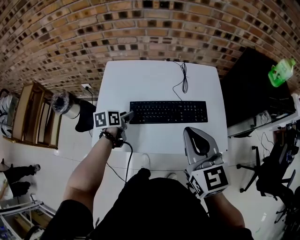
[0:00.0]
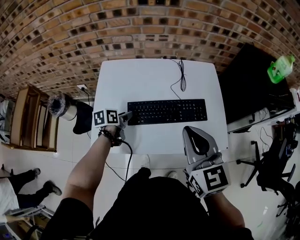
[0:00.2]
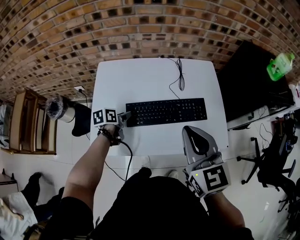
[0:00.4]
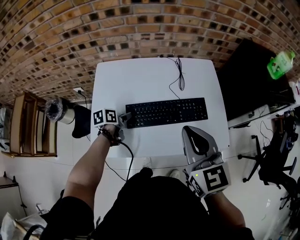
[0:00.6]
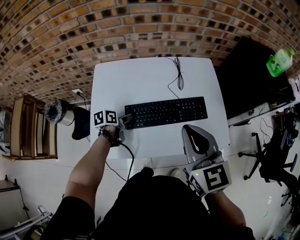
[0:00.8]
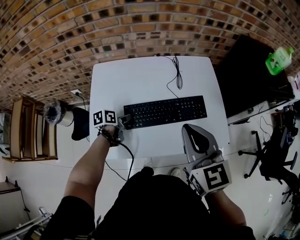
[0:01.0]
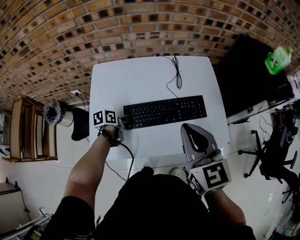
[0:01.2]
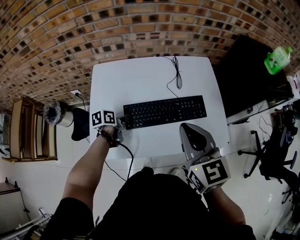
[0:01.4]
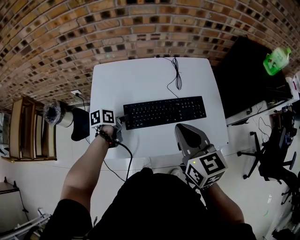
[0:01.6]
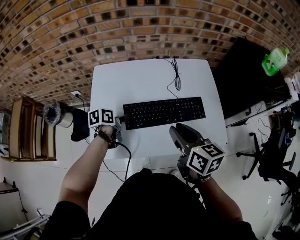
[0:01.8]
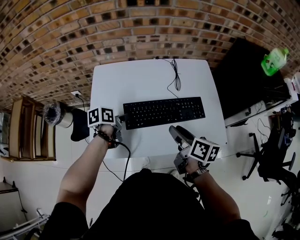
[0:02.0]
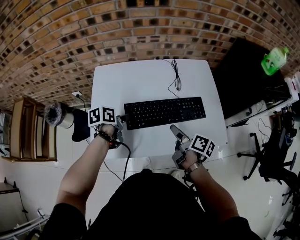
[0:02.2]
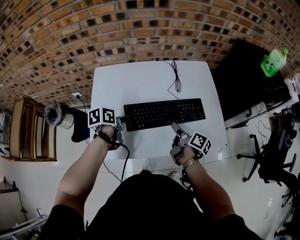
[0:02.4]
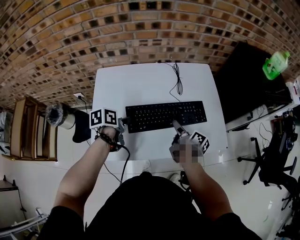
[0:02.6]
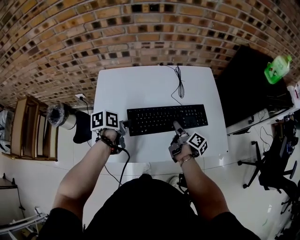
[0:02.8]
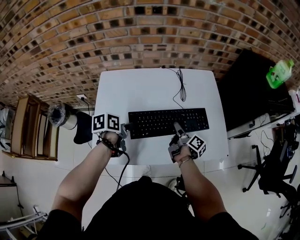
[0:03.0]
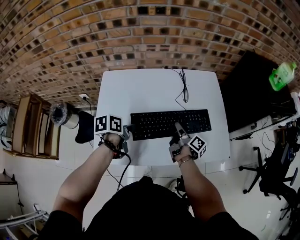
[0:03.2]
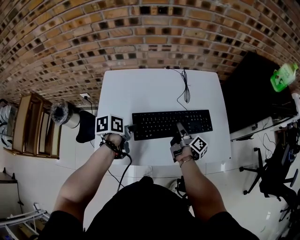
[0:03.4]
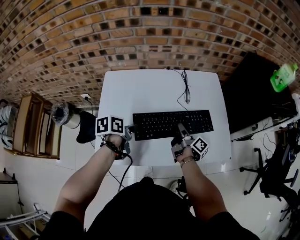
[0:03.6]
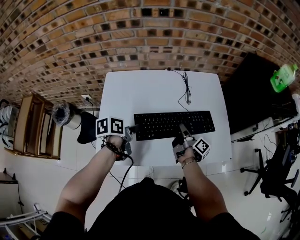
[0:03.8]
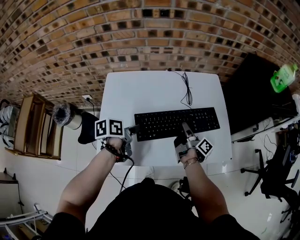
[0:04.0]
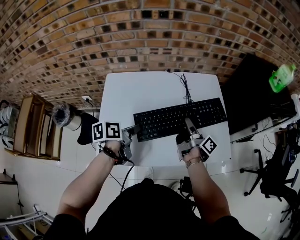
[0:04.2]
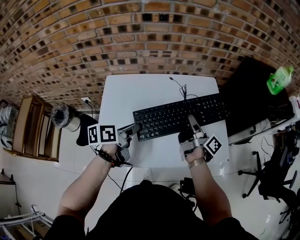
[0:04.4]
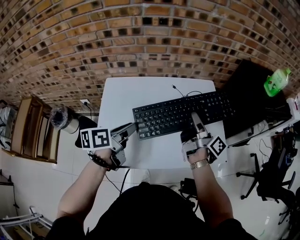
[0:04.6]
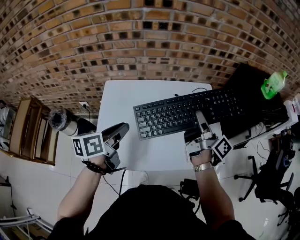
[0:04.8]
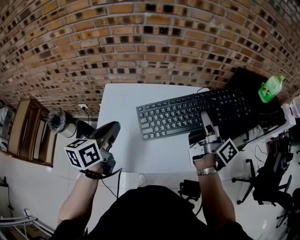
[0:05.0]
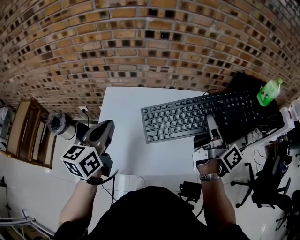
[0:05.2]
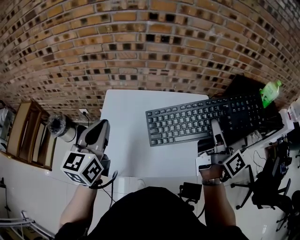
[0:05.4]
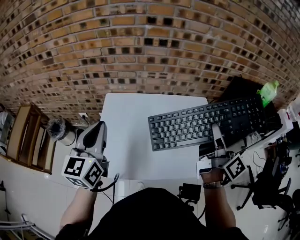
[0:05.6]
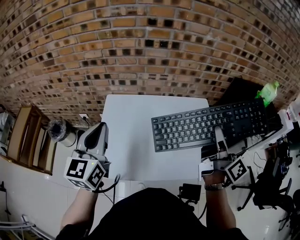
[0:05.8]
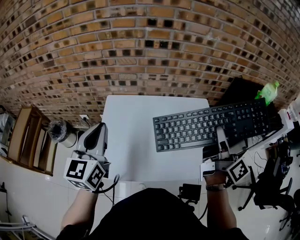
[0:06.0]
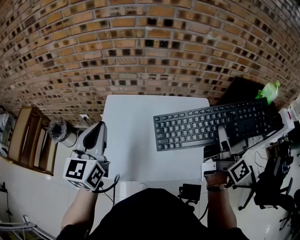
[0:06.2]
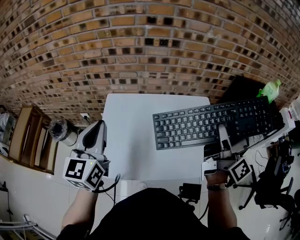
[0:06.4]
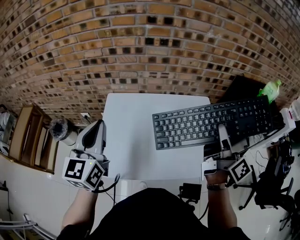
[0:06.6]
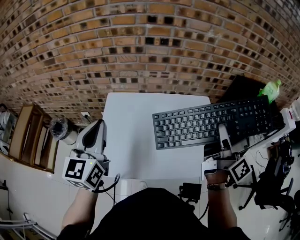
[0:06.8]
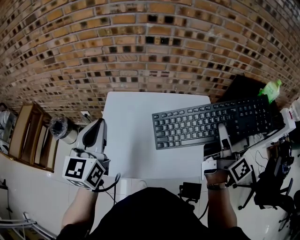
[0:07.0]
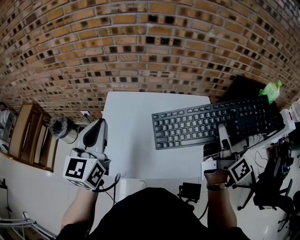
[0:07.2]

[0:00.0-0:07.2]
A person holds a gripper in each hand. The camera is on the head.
0:00.0 to 0:01.4: The left gripper shifts some 5 cm downward, and closes its fingers.
0:01.4 to 0:02.8: The left gripper goes about 10 cm upward, while the right gripper heads downward, covering roughly 25 cm, rotates around the line of its fingers by roughly 80 degrees, clockwise from behind, and opens up.
0:02.8 to 0:04.4: The left gripper goes some 10 cm upward. Meanwhile the right gripper travels upward by some 15 cm, rotates roughly 30 degrees, and closes up.
0:04.4 to 0:05.8: The left gripper heads upward and to the left, covering some 25 cm, turns by approximately 60 degrees, and closes its fingers, while the right gripper moves upward, approximately 20 cm, and rotates some 30 degrees.
0:05.8 to 0:07.2: Neither gripper changes place.

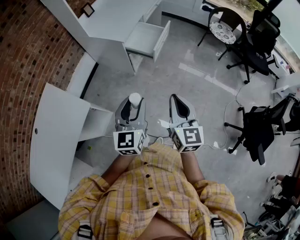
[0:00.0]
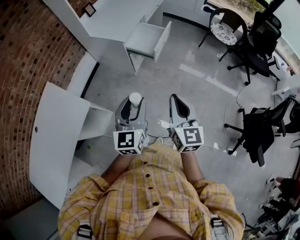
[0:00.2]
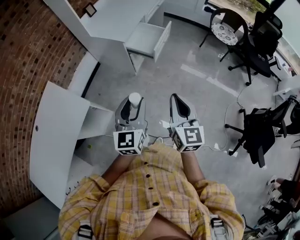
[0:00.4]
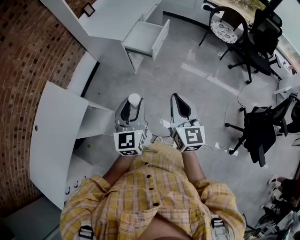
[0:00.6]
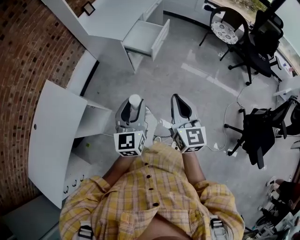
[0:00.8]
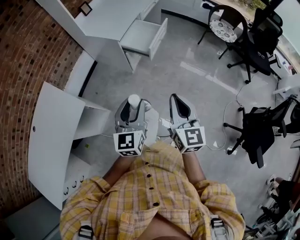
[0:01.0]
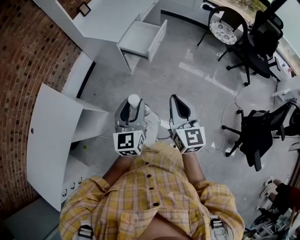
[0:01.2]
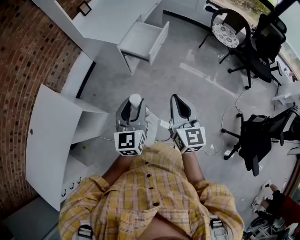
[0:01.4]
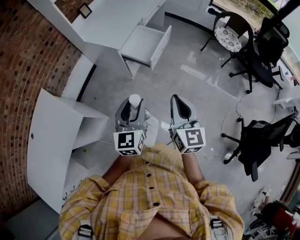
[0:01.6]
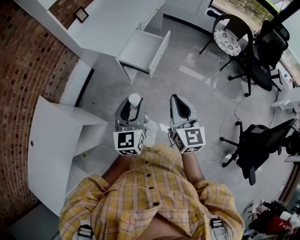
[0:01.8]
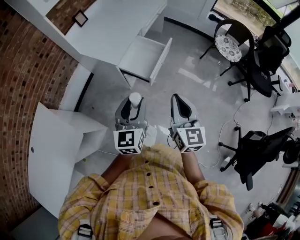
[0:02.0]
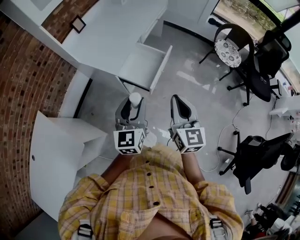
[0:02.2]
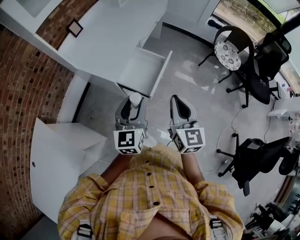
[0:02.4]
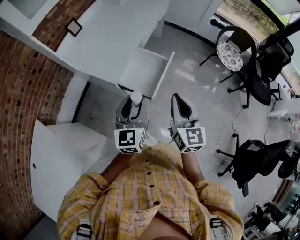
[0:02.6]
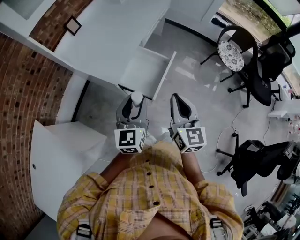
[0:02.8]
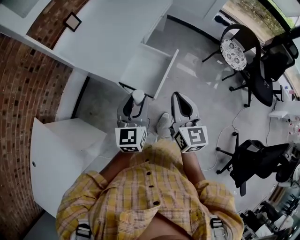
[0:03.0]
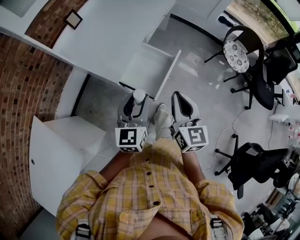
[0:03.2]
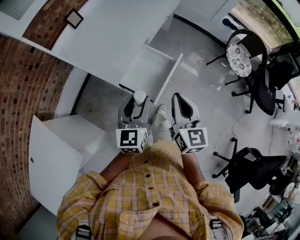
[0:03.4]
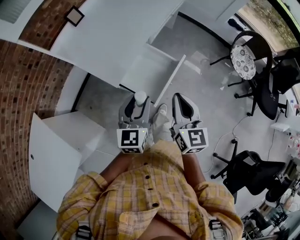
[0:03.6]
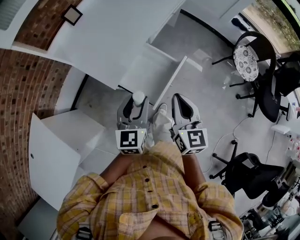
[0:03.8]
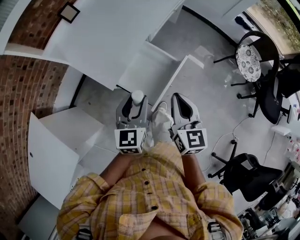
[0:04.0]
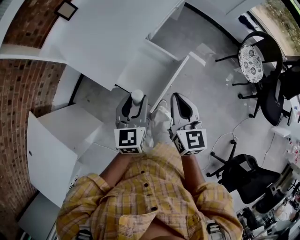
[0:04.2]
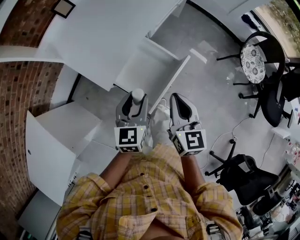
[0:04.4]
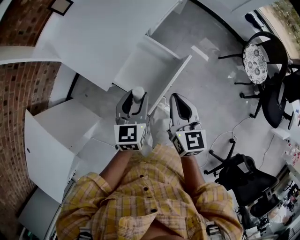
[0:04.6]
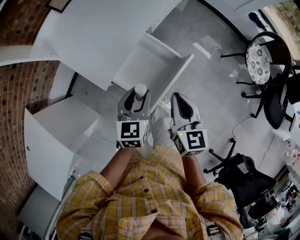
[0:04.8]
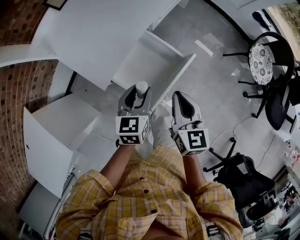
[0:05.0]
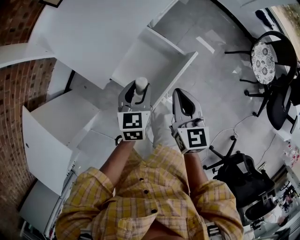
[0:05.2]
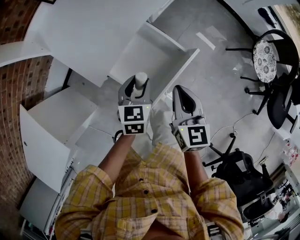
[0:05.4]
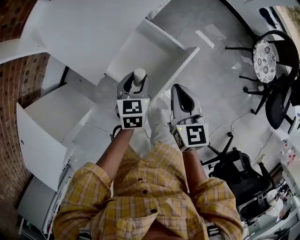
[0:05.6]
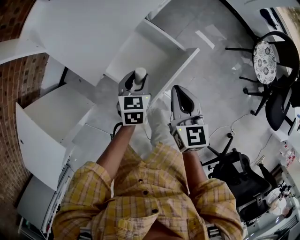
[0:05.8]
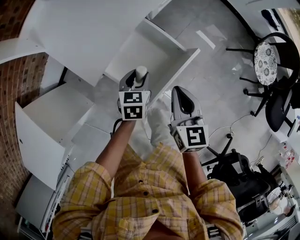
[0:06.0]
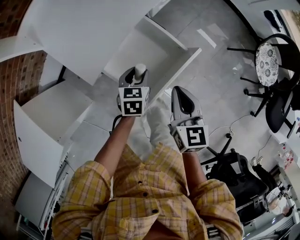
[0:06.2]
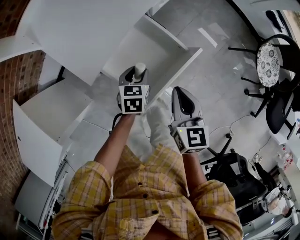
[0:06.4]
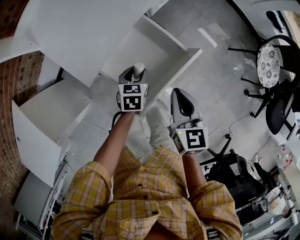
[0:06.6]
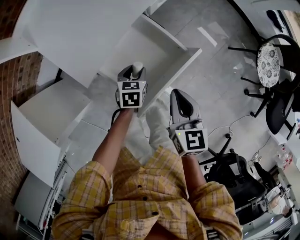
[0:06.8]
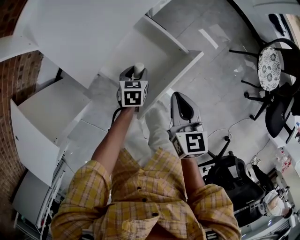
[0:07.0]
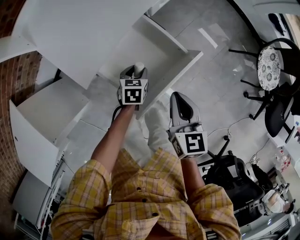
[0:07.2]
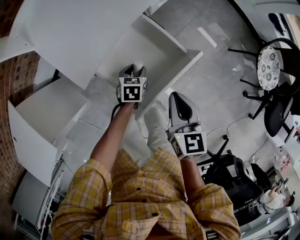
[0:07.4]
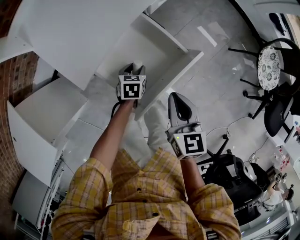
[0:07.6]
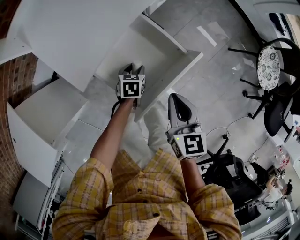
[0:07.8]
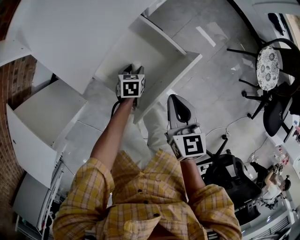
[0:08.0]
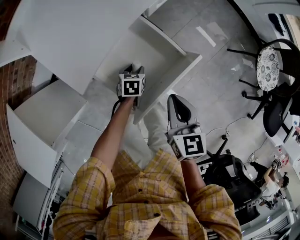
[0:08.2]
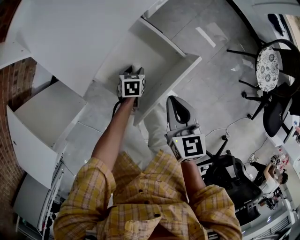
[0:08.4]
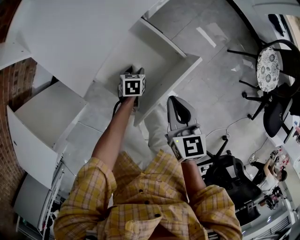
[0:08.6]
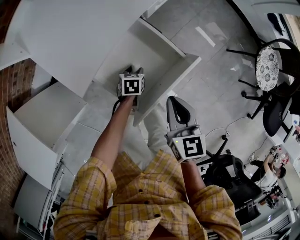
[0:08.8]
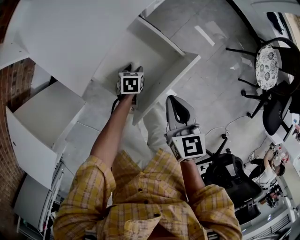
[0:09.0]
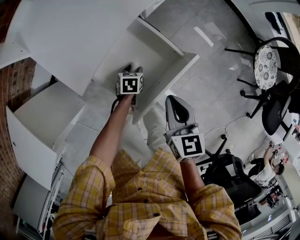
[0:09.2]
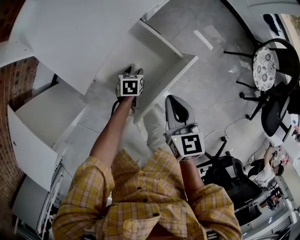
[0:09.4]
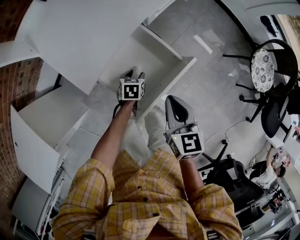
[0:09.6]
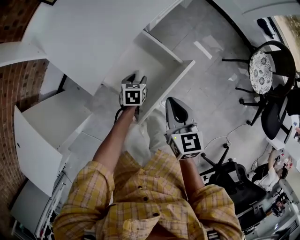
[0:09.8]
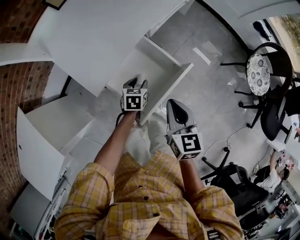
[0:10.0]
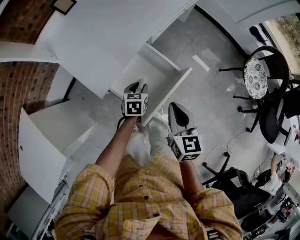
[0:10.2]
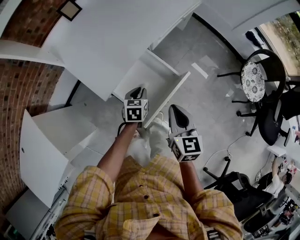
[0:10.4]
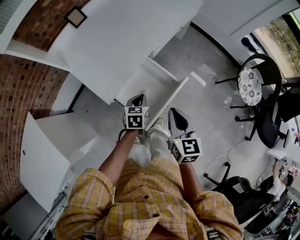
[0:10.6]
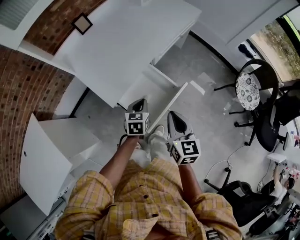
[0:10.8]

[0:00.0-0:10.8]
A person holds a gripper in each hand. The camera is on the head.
0:00.0 to 0:01.6: The two grippers go roughly 10 cm forward and to the right.
0:01.6 to 0:03.0: The two grippers go approximately 30 cm forward.
0:03.0 to 0:04.6: Both grippers travel together forward and downward, some 20 cm. The left gripper changes its angle by about 20 degrees.
0:04.6 to 0:06.2: The right gripper heads downward, covering approximately 10 cm; the left gripper travels downward by roughly 20 cm, and rotates approximately 20 degrees.
0:06.2 to 0:07.8: The left gripper moves downward, some 15 cm.
0:07.8 to 0:09.2: There are only small adjustments of the grippers.
0:09.2 to 0:10.8: The right gripper heads upward, covering about 15 cm, while the left gripper travels upward by roughly 30 cm, turns by approximately 30 degrees, and closes.

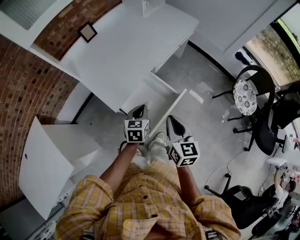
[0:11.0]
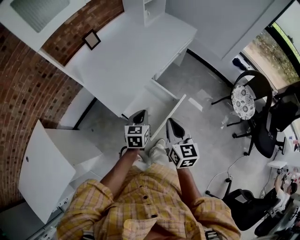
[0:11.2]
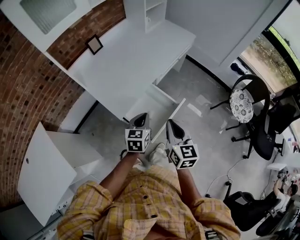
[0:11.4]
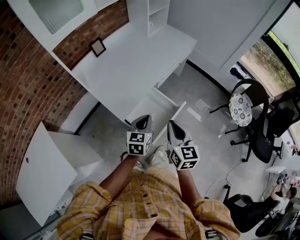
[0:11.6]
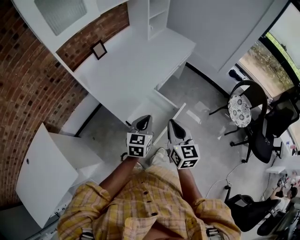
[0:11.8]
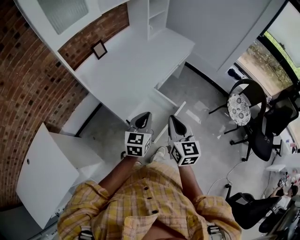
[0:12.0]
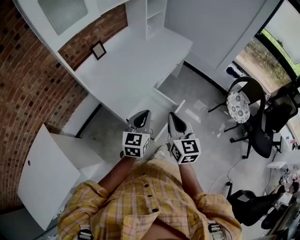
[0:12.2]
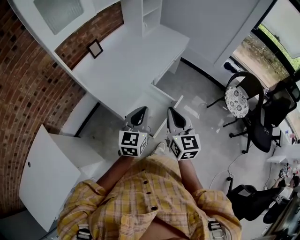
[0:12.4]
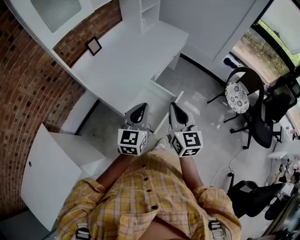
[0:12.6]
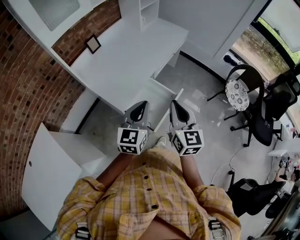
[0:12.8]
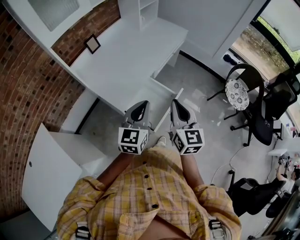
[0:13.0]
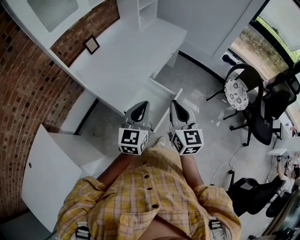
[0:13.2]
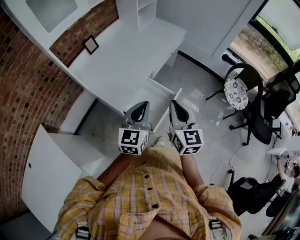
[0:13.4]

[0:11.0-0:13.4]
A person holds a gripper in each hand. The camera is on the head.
0:11.0 to 0:12.2: The left gripper shifts approximately 20 cm upward, and swivels about 20 degrees; the right gripper goes some 10 cm upward.
0:12.2 to 0:13.4: There are only small adjustments of the grippers.

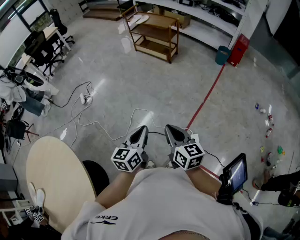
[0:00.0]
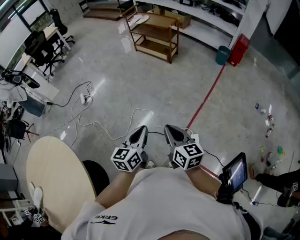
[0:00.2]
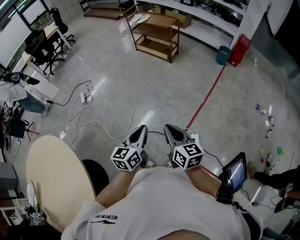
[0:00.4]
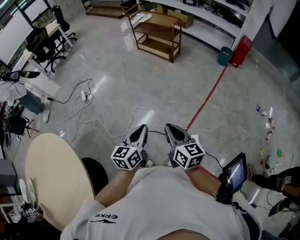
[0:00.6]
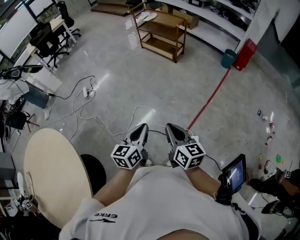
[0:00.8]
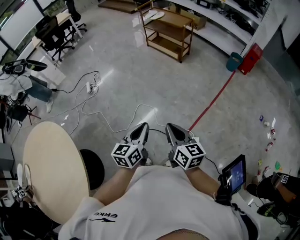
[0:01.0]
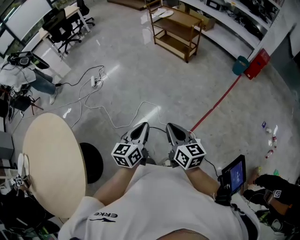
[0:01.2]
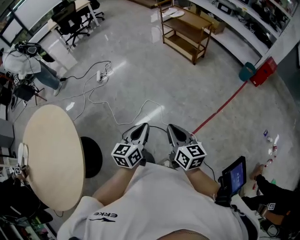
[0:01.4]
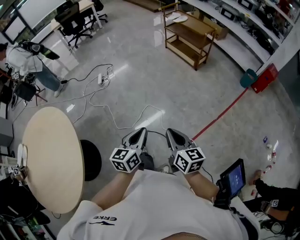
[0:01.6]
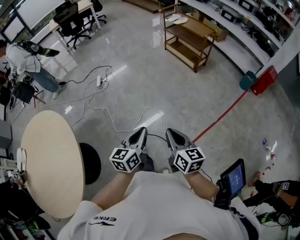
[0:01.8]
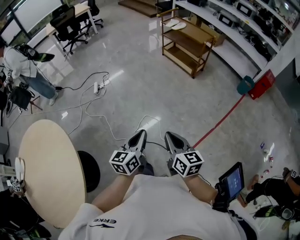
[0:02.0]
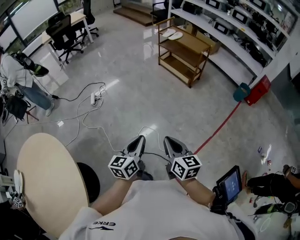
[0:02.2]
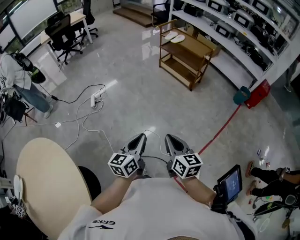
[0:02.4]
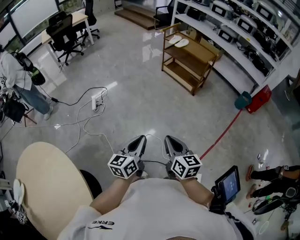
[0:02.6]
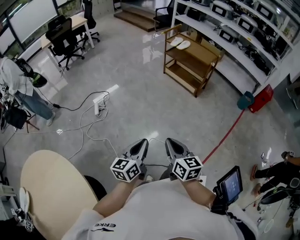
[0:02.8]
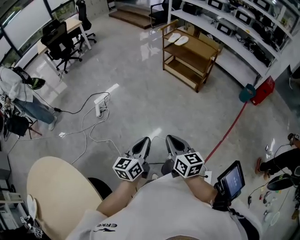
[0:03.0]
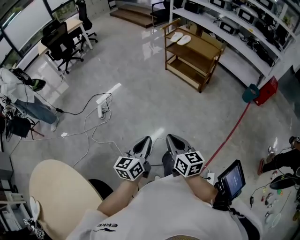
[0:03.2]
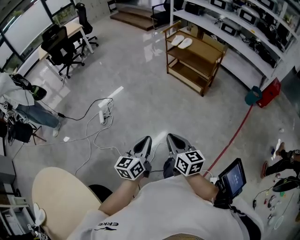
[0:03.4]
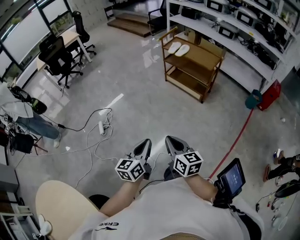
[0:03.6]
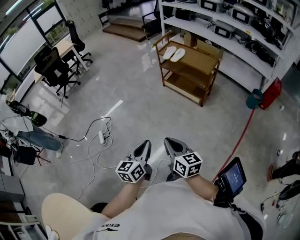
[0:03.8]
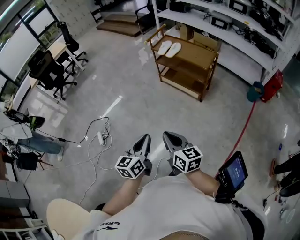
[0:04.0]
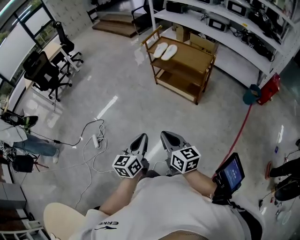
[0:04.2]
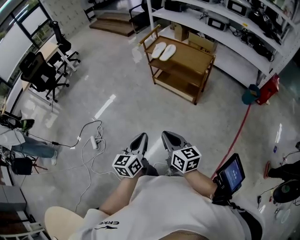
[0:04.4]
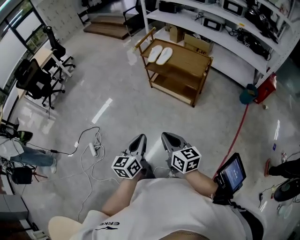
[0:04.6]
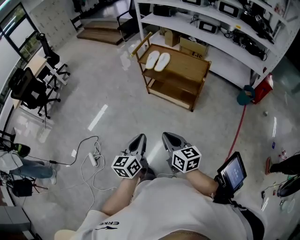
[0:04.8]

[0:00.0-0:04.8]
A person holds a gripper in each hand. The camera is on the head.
0:00.0 to 0:01.6: There are only small adjustments of the grippers.
0:01.6 to 0:03.2: Both grippers travel together forward and to the left, roughly 35 cm.
0:03.2 to 0:04.8: The two grippers travel together, forward, roughly 40 cm.
